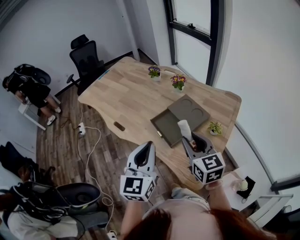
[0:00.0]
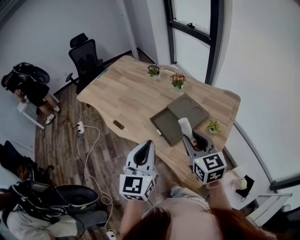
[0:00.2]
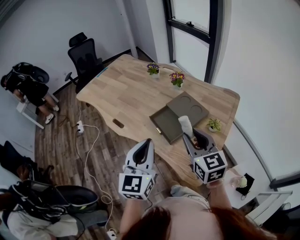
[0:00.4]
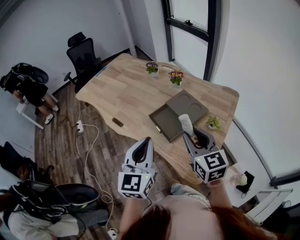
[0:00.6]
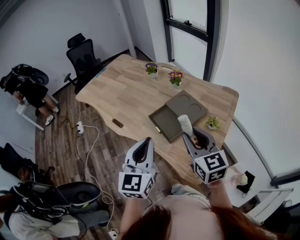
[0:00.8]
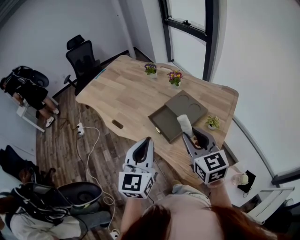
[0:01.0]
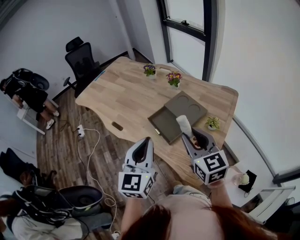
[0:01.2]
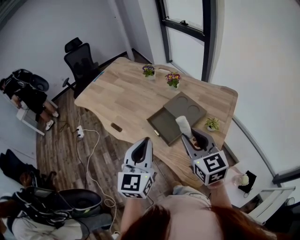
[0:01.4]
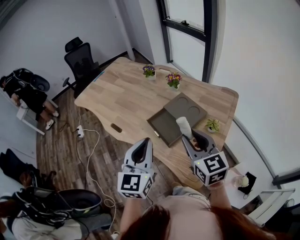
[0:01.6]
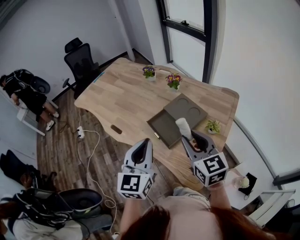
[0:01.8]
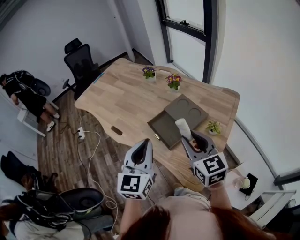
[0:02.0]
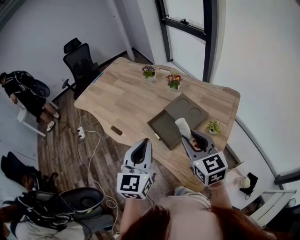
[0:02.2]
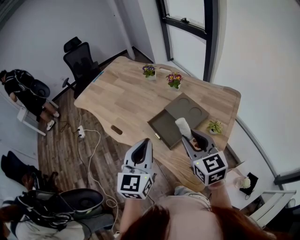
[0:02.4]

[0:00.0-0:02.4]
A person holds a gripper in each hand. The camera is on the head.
0:00.0 to 0:02.4: The grippers move only a little.

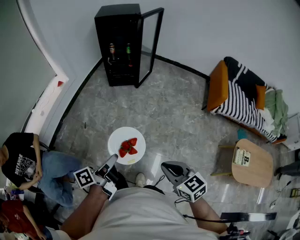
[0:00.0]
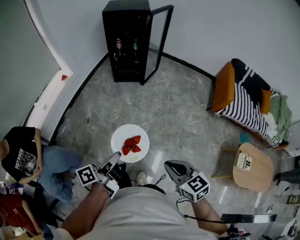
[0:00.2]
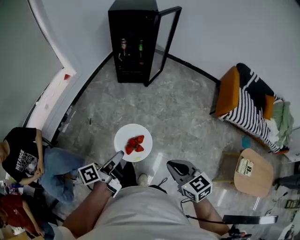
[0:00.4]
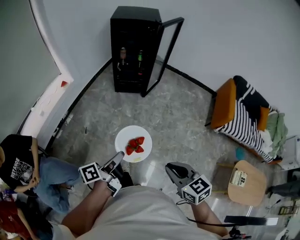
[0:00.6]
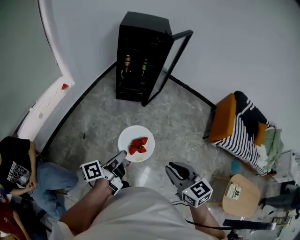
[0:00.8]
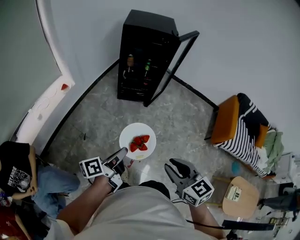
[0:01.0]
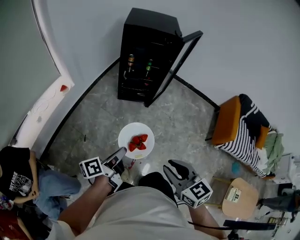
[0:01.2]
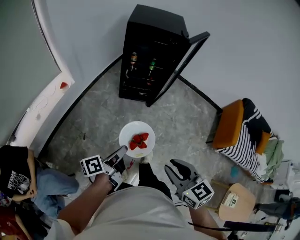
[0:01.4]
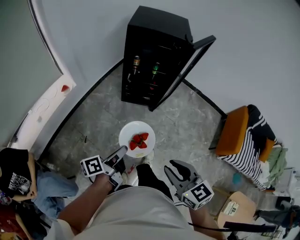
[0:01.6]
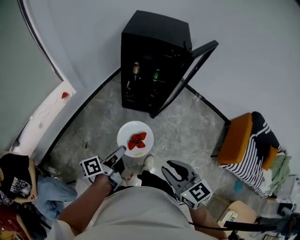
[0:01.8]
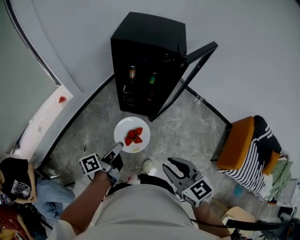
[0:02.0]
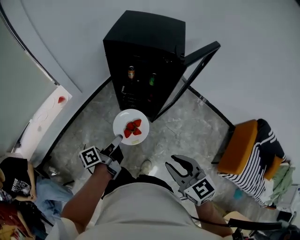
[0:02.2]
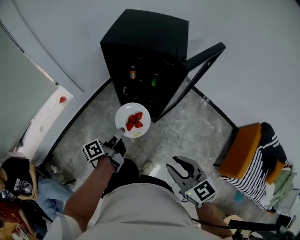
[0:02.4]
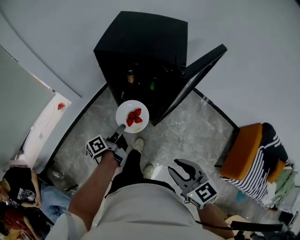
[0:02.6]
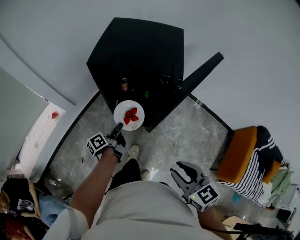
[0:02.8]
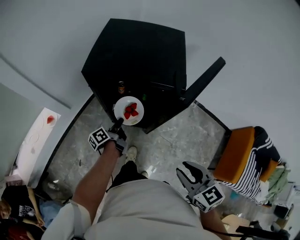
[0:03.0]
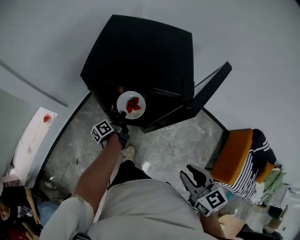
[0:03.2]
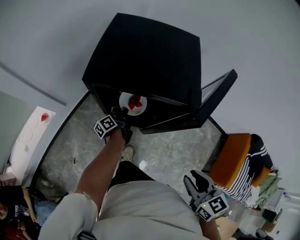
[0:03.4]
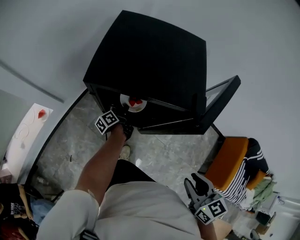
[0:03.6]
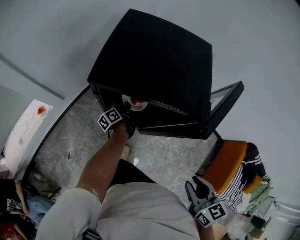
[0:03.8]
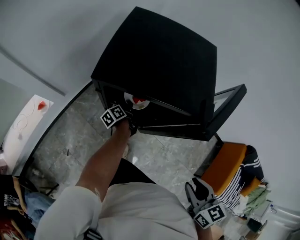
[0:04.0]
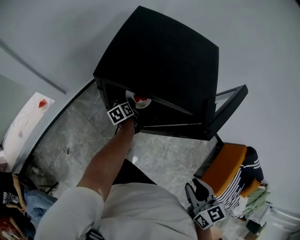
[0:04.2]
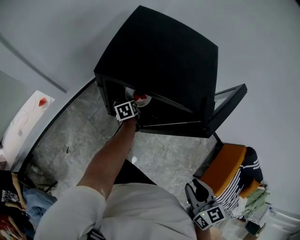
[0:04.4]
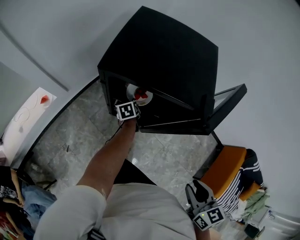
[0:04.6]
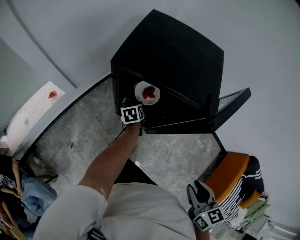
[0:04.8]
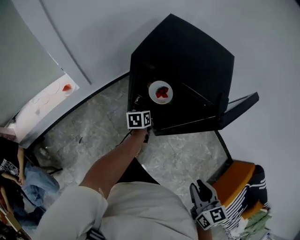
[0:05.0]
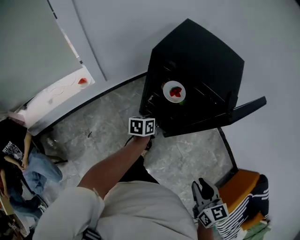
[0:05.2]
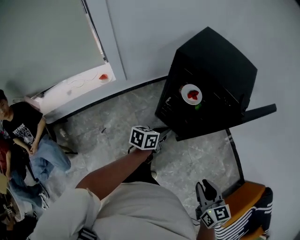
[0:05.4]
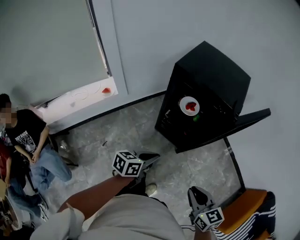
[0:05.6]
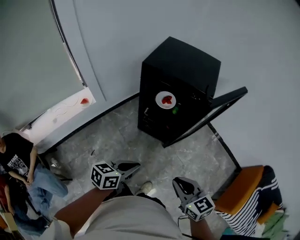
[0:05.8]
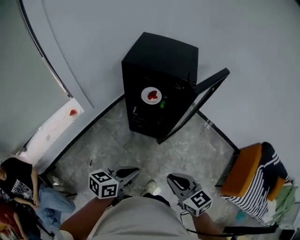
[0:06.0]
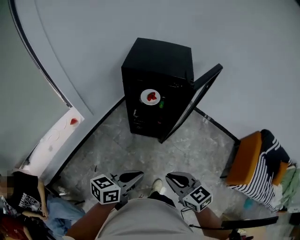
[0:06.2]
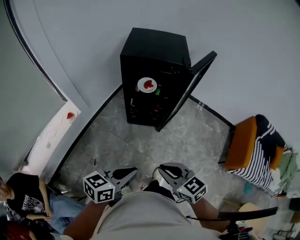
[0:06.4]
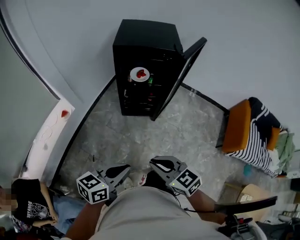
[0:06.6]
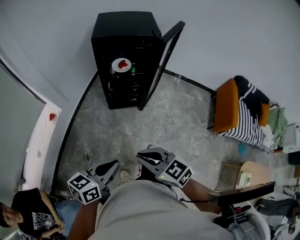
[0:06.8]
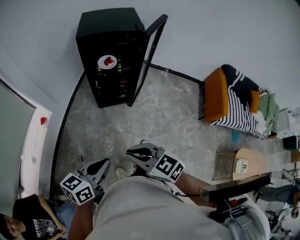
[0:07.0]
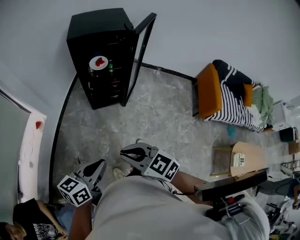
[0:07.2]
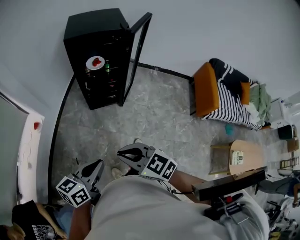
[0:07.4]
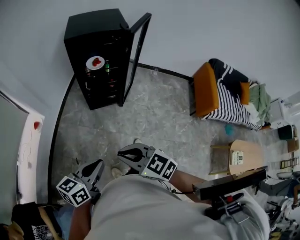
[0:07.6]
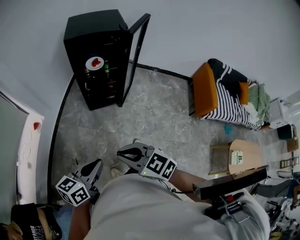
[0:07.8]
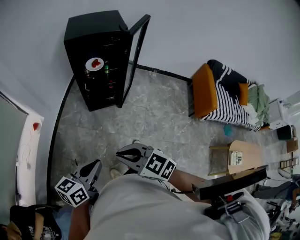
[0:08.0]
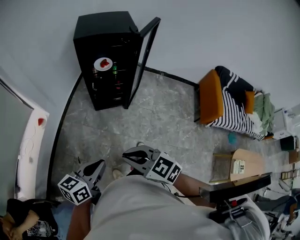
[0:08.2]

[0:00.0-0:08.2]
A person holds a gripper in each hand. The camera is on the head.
0:00.0 to 0:01.6: The pair of grippers is taken forward, about 40 cm.
0:01.6 to 0:03.2: The pair of grippers is taken forward, some 50 cm.
0:03.2 to 0:05.0: The left gripper moves approximately 10 cm forward and comes back, changes its angle by some 40 degrees, and opens.
0:05.0 to 0:06.6: The right gripper heads to the left and backward, covering some 35 cm, while the left gripper heads backward and upward, covering approximately 60 cm, changes its angle by about 50 degrees, and closes.
0:06.6 to 0:08.2: Both grippers move backward, roughly 10 cm.

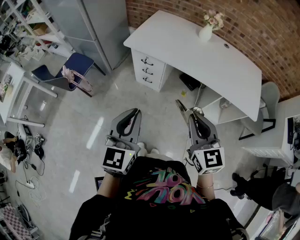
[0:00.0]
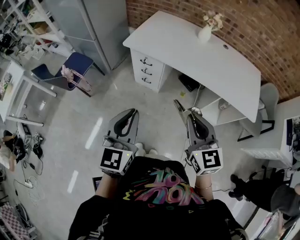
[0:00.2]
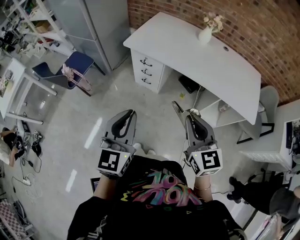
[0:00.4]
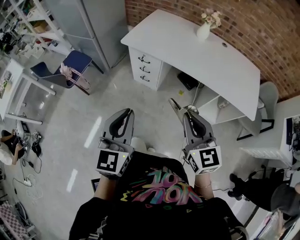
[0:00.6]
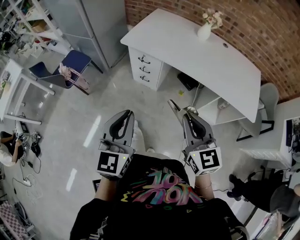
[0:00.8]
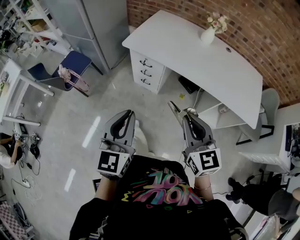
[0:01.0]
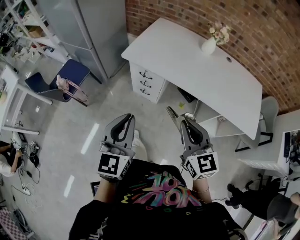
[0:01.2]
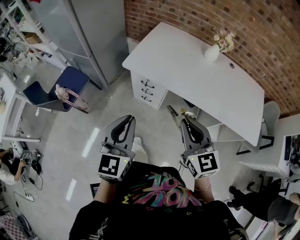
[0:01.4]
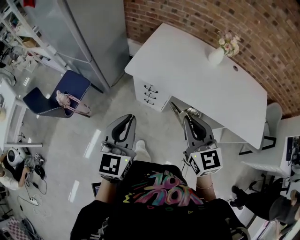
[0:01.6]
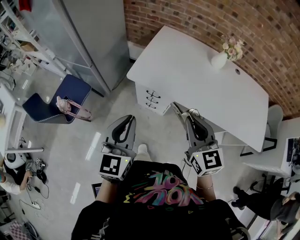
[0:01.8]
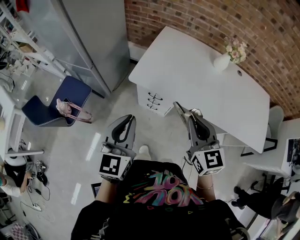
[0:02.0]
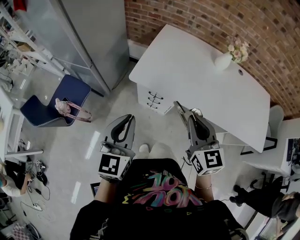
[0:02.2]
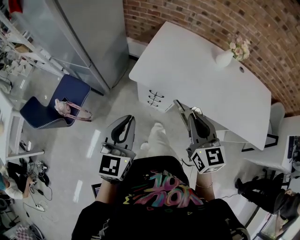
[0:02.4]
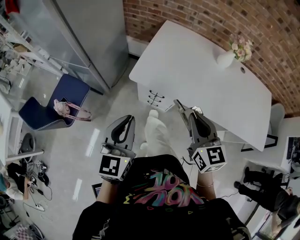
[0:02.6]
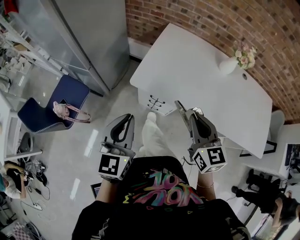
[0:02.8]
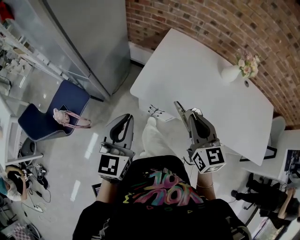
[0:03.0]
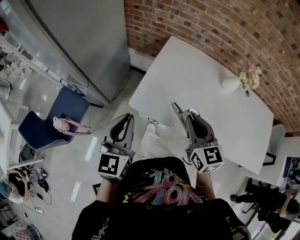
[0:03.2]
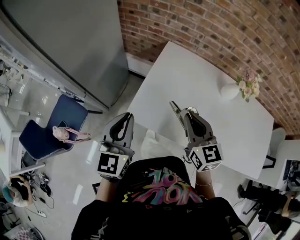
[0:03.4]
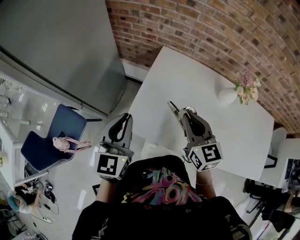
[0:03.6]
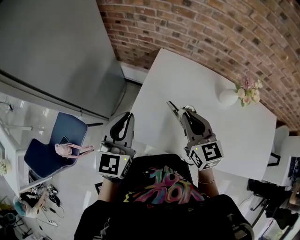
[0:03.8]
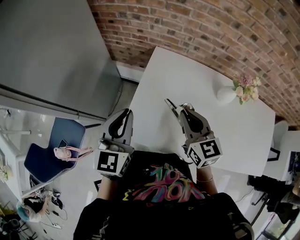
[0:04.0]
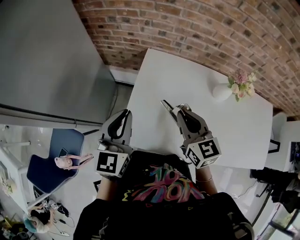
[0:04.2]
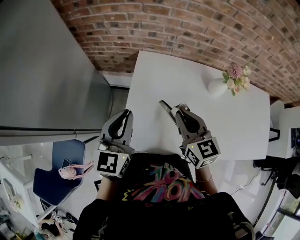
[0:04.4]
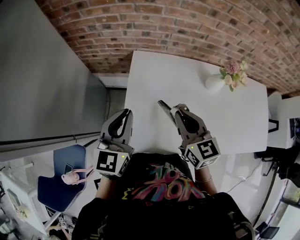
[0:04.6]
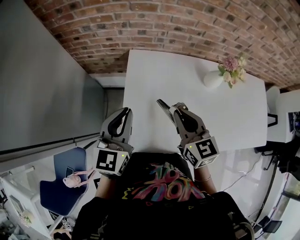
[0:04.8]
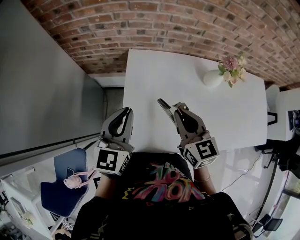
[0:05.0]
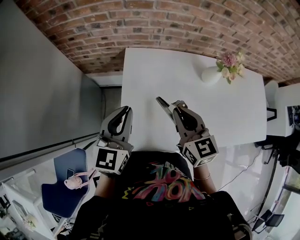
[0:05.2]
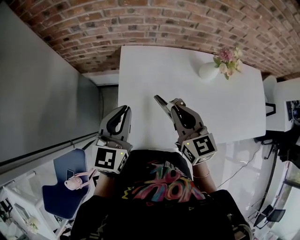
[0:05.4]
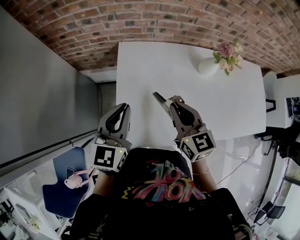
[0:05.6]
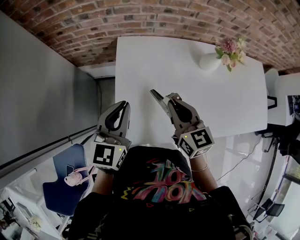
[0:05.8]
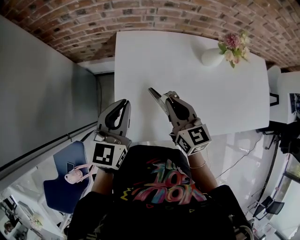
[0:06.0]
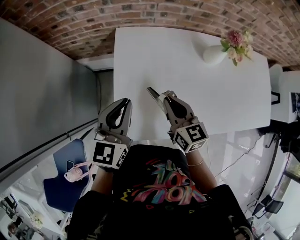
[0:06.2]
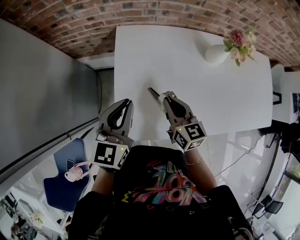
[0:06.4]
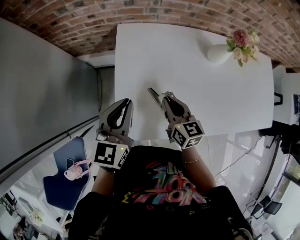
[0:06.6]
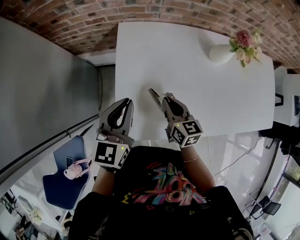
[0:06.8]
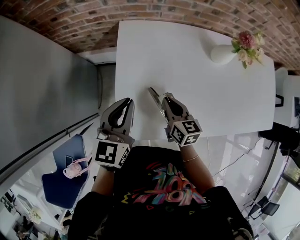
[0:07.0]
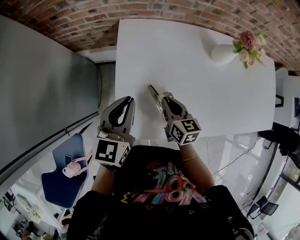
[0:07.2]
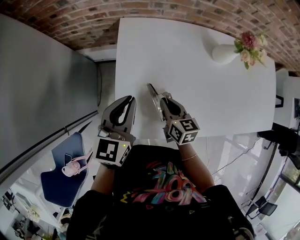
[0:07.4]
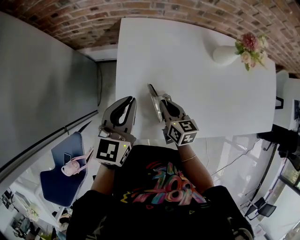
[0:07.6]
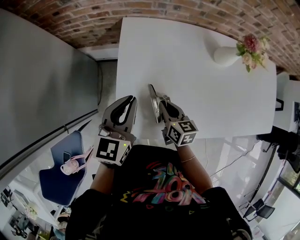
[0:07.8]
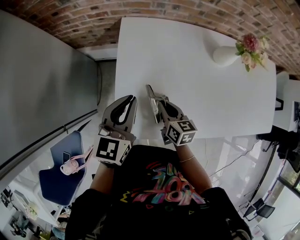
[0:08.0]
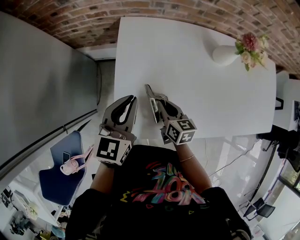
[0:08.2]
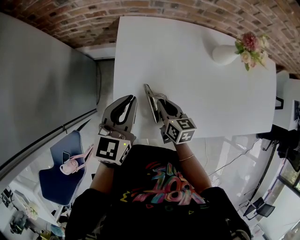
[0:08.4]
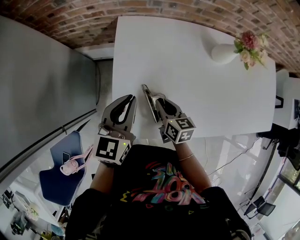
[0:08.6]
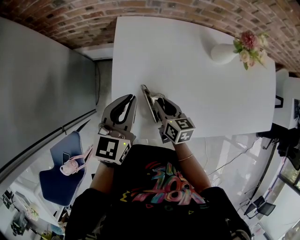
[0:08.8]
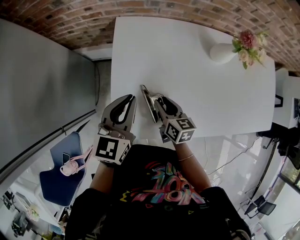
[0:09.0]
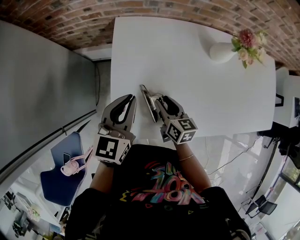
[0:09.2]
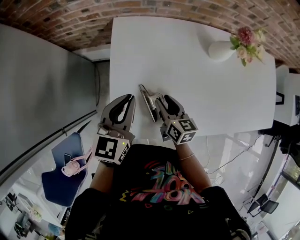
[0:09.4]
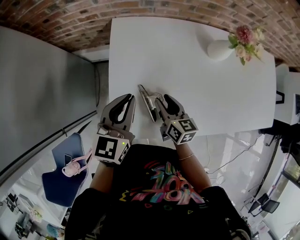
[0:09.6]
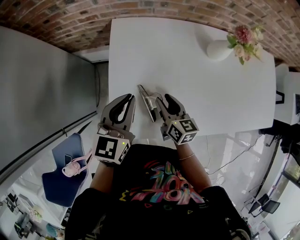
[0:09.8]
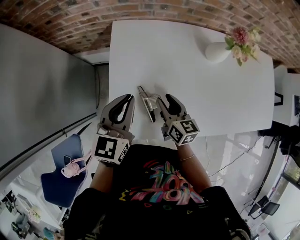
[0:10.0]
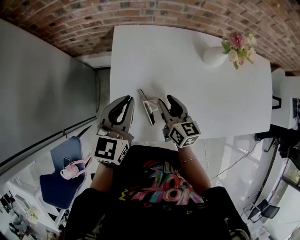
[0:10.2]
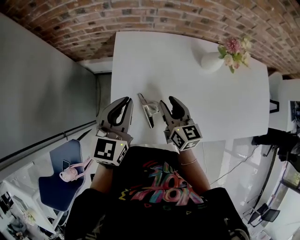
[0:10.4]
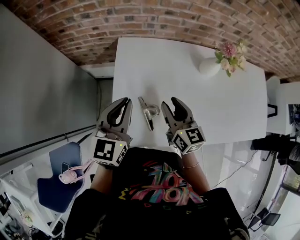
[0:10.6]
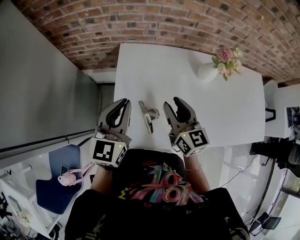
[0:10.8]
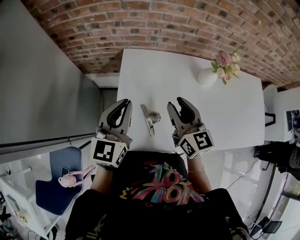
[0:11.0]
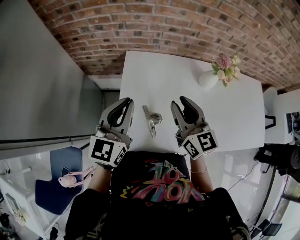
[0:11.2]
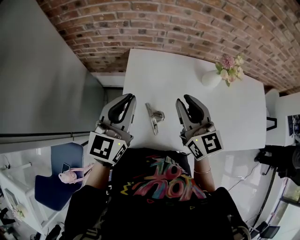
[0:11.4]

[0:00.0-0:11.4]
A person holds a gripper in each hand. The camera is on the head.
0:00.0 to 0:01.4: Both grippers move forward, roughly 20 cm.
0:01.4 to 0:02.8: The left gripper heads forward and to the left, covering approximately 25 cm. Meanwhile the right gripper travels forward by approximately 20 cm.
0:02.8 to 0:04.2: The two grippers go approximately 35 cm forward.
0:04.2 to 0:05.6: The left gripper travels forward by some 5 cm.
0:05.6 to 0:07.2: The right gripper travels downward by roughly 20 cm, and changes its angle by some 20 degrees, while the left gripper is displaced downward by approximately 10 cm.
0:07.2 to 0:08.6: The grippers stay close to where they were, moving slightly.
0:08.6 to 0:10.0: The right gripper shifts by approximately 5 cm, and opens its fingers.
0:10.0 to 0:11.4: The right gripper goes roughly 25 cm upward, and changes its angle by roughly 30 degrees; the left gripper moves upward, some 15 cm.

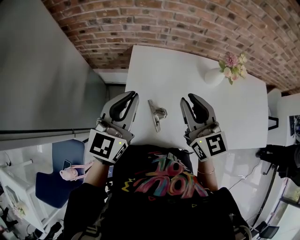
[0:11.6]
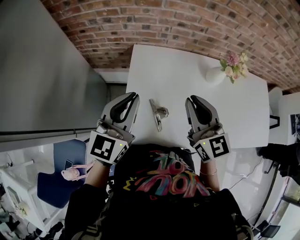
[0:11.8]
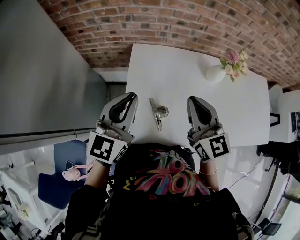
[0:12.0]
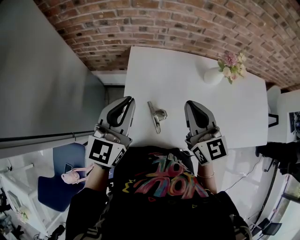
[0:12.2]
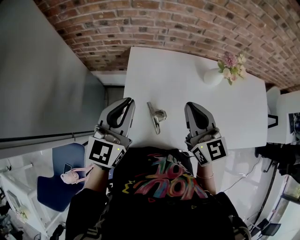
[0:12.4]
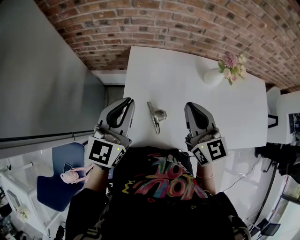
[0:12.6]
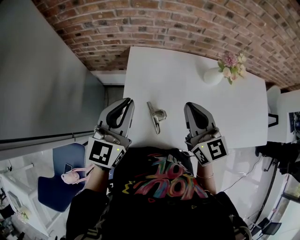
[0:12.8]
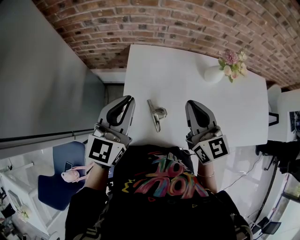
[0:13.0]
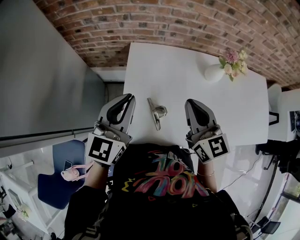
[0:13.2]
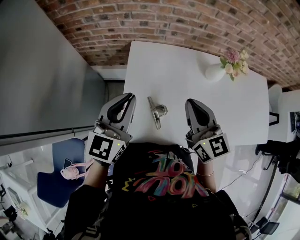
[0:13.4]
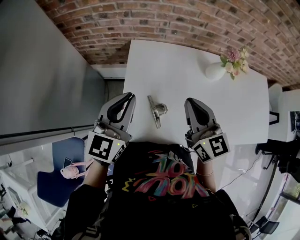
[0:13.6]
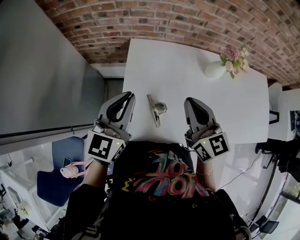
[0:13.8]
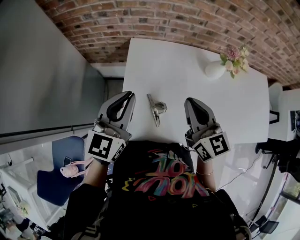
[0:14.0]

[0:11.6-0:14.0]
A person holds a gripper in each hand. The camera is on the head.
0:11.6 to 0:12.8: The right gripper closes its fingers.
0:12.8 to 0:14.0: There are only small adjustments of the grippers.
